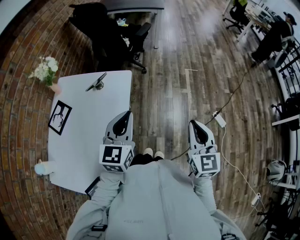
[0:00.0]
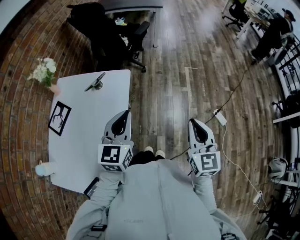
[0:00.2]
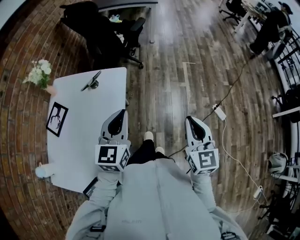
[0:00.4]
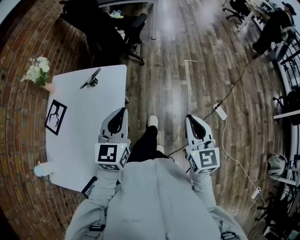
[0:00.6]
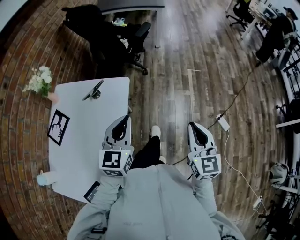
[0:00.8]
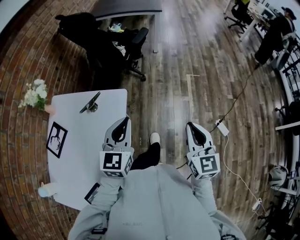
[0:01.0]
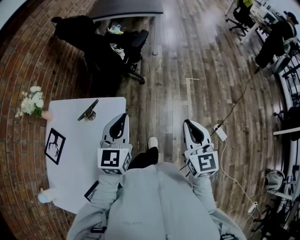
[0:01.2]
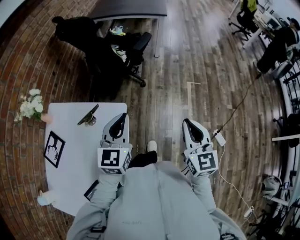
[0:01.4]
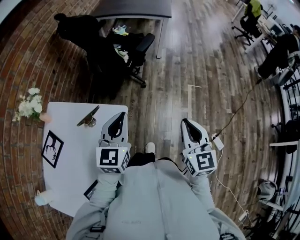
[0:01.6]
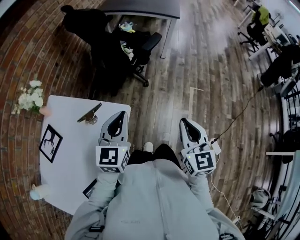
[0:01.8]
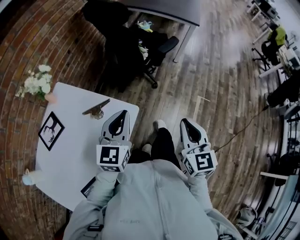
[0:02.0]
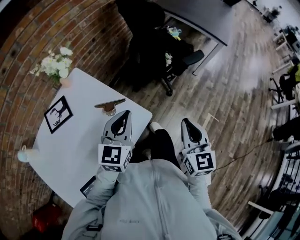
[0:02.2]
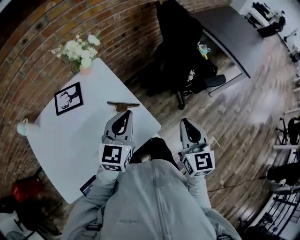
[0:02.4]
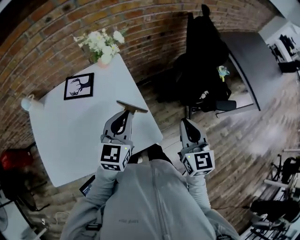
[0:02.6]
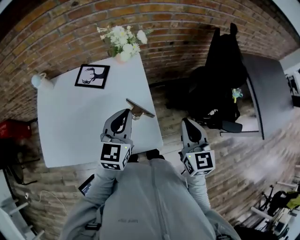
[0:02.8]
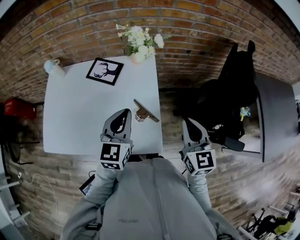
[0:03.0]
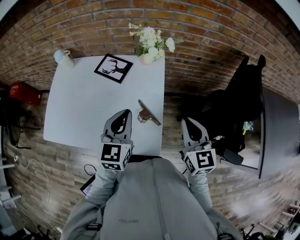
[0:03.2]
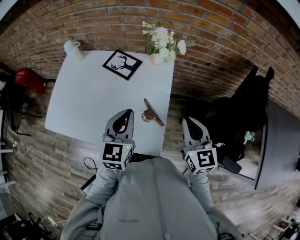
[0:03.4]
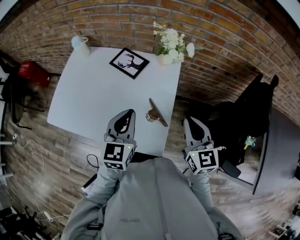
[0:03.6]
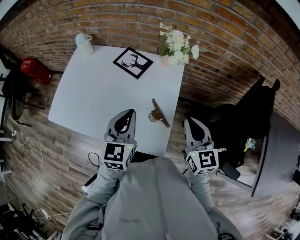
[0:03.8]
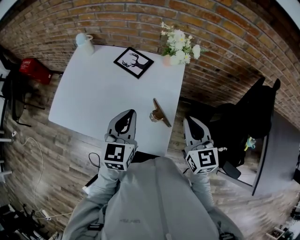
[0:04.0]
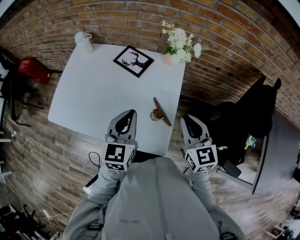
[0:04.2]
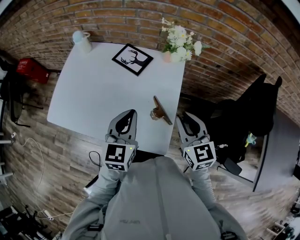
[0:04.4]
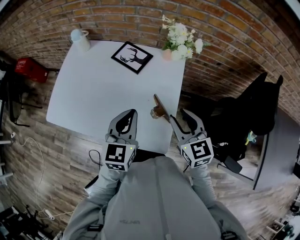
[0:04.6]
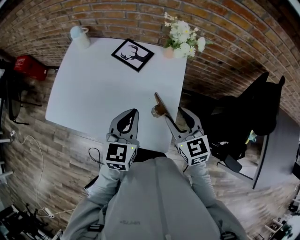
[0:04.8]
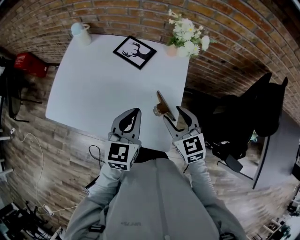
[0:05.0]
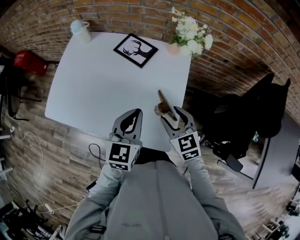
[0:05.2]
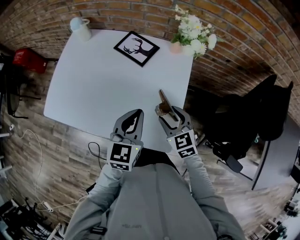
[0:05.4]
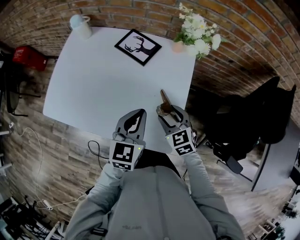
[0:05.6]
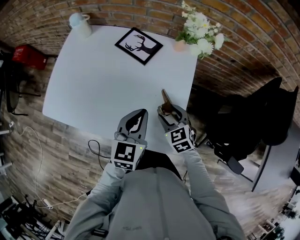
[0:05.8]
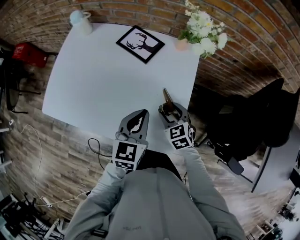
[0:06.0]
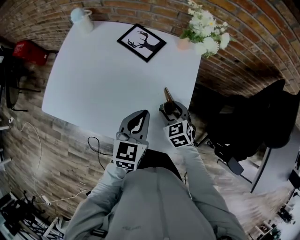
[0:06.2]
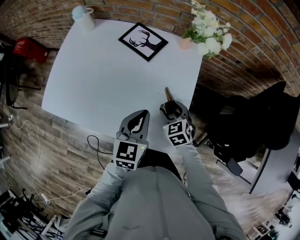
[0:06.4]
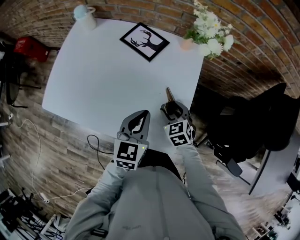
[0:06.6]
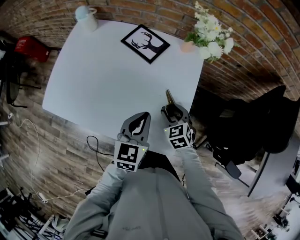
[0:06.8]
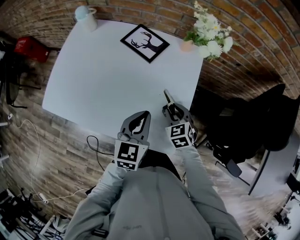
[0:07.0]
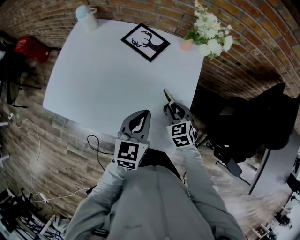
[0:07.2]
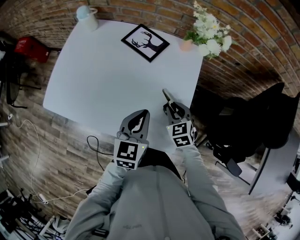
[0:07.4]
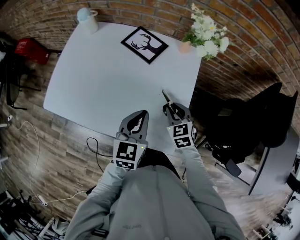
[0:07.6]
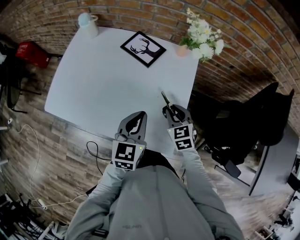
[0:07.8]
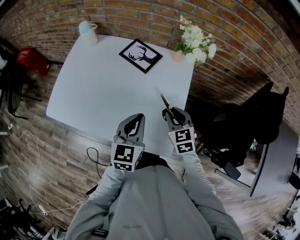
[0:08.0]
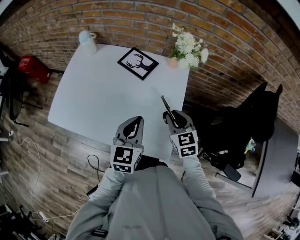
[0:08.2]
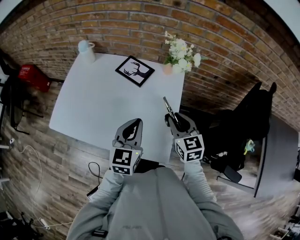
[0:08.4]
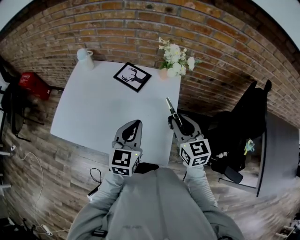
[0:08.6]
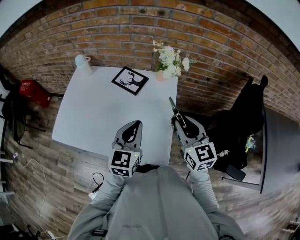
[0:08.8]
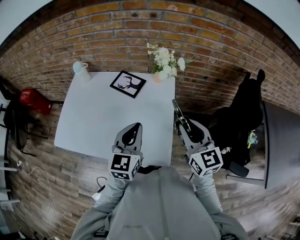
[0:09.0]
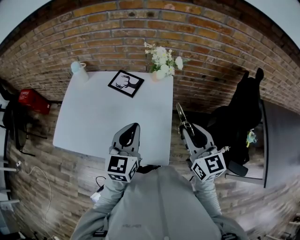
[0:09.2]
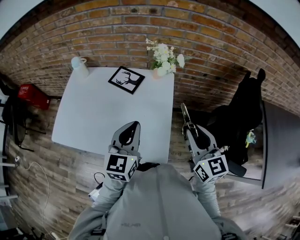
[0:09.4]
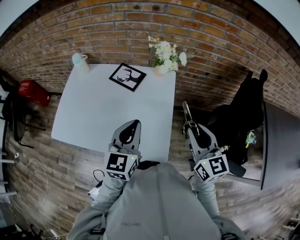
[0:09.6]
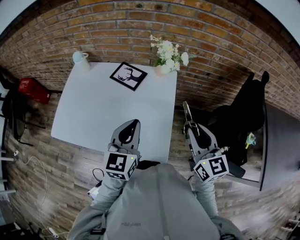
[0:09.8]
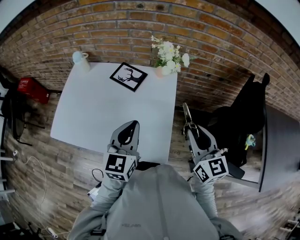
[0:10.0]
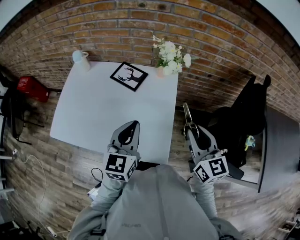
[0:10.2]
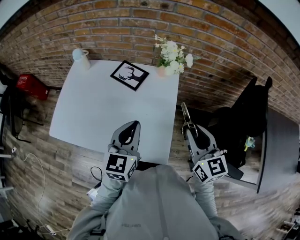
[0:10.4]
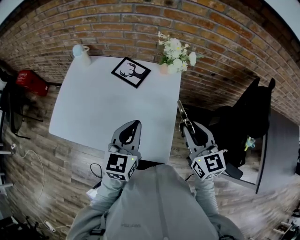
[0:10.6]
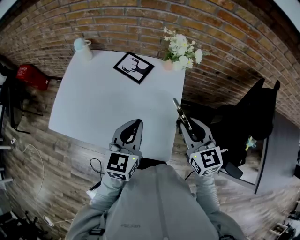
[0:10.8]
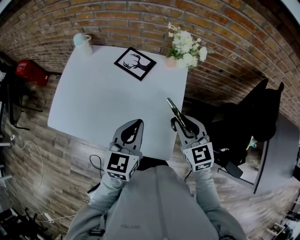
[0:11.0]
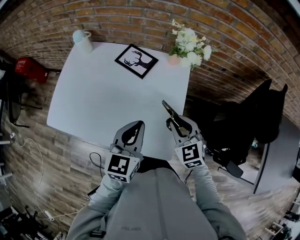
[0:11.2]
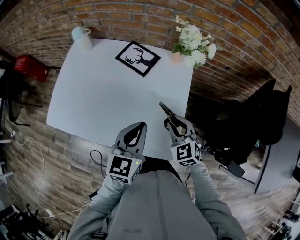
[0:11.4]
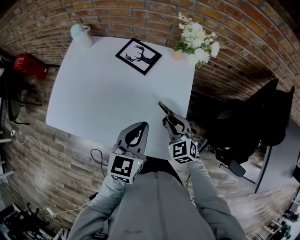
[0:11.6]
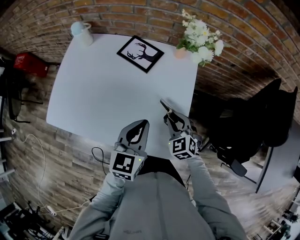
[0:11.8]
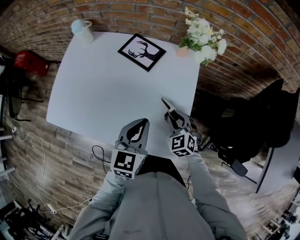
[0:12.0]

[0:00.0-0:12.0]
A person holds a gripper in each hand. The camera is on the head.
0:00.0 to 0:01.6: Both grippers move forward, approximately 25 cm.
0:01.6 to 0:03.0: The left gripper moves about 25 cm, and changes its angle by approximately 80 degrees. The right gripper changes place by approximately 40 cm, and turns by roughly 80 degrees.
0:03.0 to 0:04.4: The left gripper heads to the left, covering approximately 5 cm; the right gripper heads to the left and forward, covering roughly 10 cm, and turns by some 20 degrees.
0:04.4 to 0:06.0: The right gripper moves downward, roughly 20 cm, turns by about 30 degrees, and opens; the left gripper is displaced downward by approximately 10 cm.
0:06.0 to 0:07.6: The right gripper closes its fingers.
0:07.6 to 0:09.0: The right gripper heads upward, covering roughly 25 cm, and tips its fingers upward by roughly 30 degrees. Meanwhile the left gripper heads upward, covering approximately 10 cm.
0:09.0 to 0:10.4: There are only small adjustments of the grippers.
0:10.4 to 0:12.0: The left gripper goes roughly 10 cm downward. Meanwhile the right gripper travels downward and to the left by approximately 25 cm, and changes its angle by about 40 degrees.

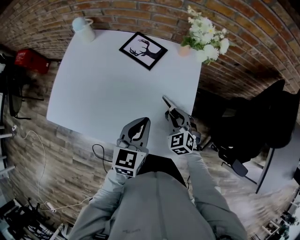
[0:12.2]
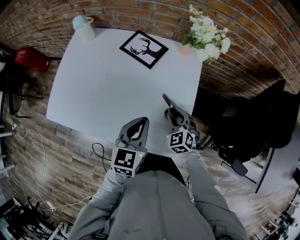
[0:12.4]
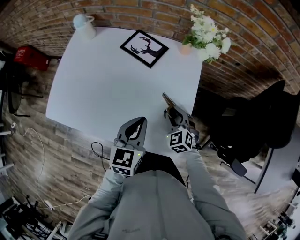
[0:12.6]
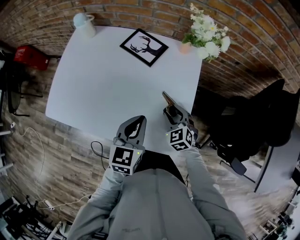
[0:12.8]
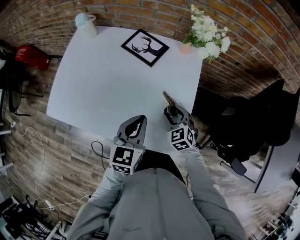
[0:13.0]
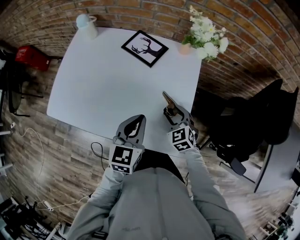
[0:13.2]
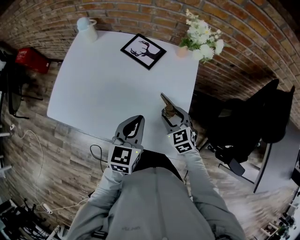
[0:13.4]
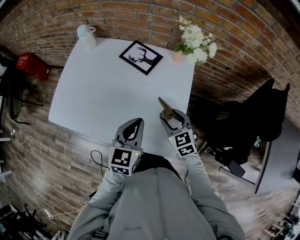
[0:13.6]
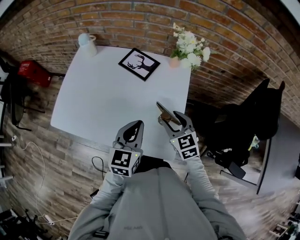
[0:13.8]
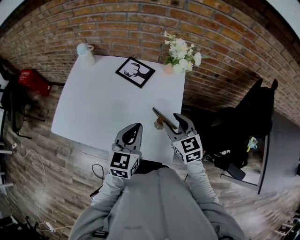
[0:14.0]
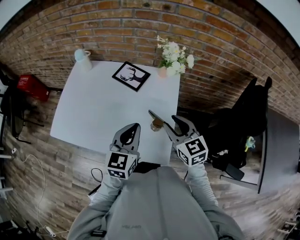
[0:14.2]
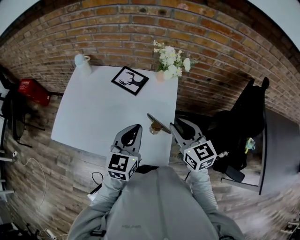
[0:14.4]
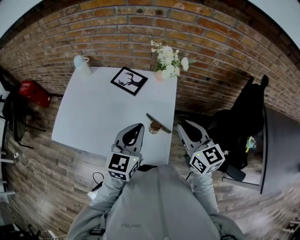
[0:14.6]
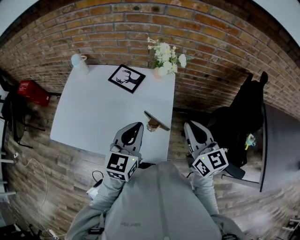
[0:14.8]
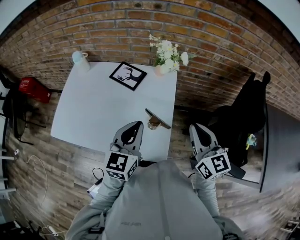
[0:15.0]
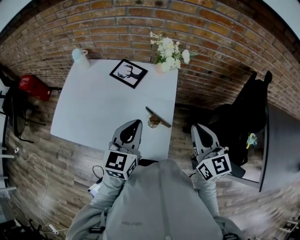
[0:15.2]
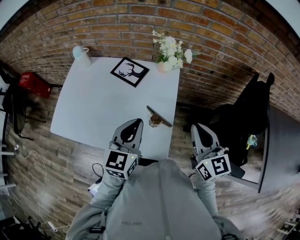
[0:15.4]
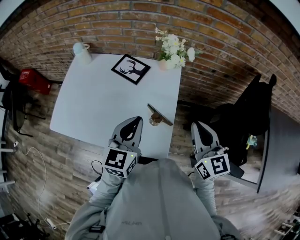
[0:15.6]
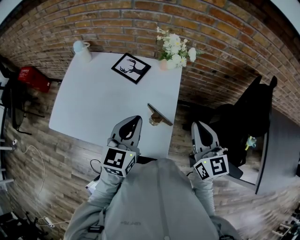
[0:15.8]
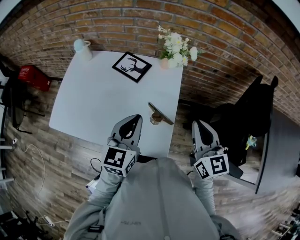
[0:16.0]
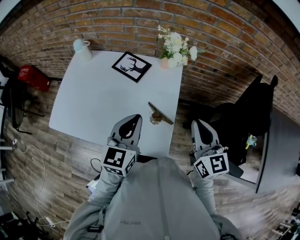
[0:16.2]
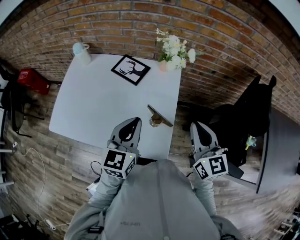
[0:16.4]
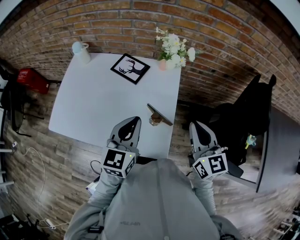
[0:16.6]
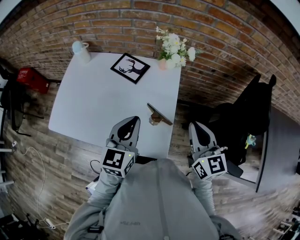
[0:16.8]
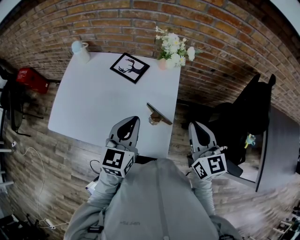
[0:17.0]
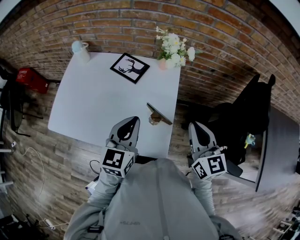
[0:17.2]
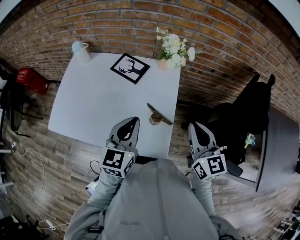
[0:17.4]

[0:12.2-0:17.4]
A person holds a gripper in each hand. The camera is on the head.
0:12.2 to 0:14.0: The left gripper heads upward, covering roughly 5 cm; the right gripper goes approximately 15 cm upward, turns by some 30 degrees, and opens its fingers.
0:14.0 to 0:15.6: The right gripper shifts approximately 15 cm upward and to the right, changes its angle by approximately 20 degrees, and closes its fingers. Meanwhile the left gripper shifts by about 5 cm.
0:15.6 to 0:17.4: The grippers make only small movements.

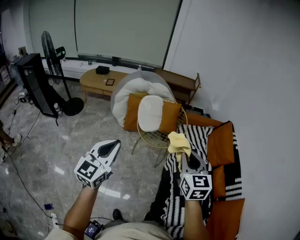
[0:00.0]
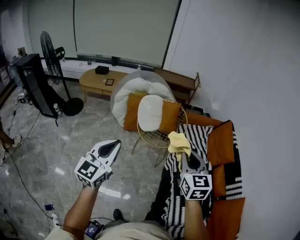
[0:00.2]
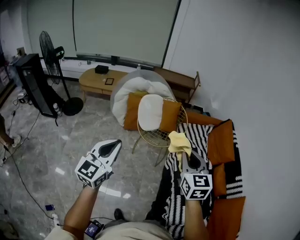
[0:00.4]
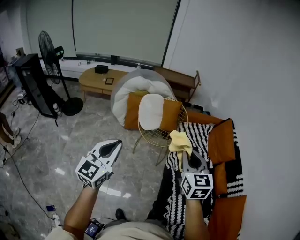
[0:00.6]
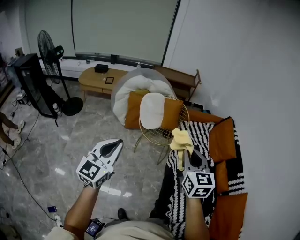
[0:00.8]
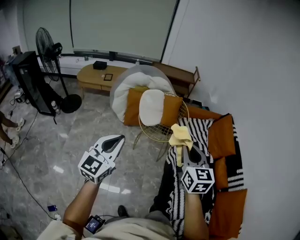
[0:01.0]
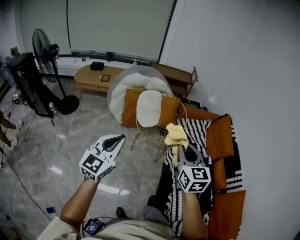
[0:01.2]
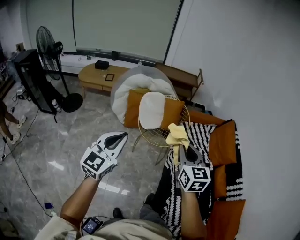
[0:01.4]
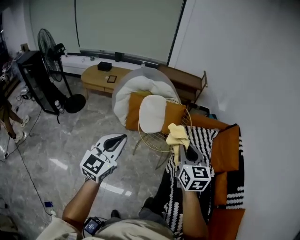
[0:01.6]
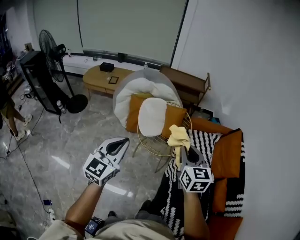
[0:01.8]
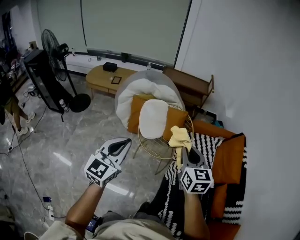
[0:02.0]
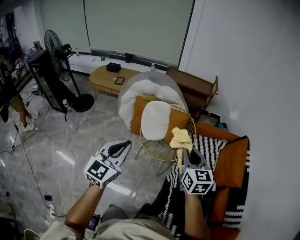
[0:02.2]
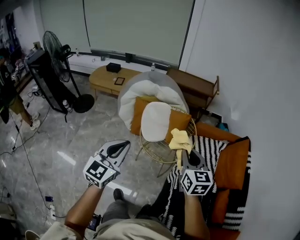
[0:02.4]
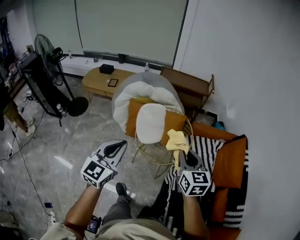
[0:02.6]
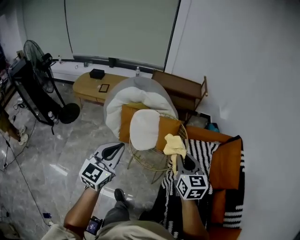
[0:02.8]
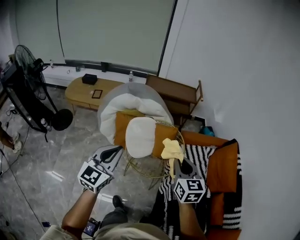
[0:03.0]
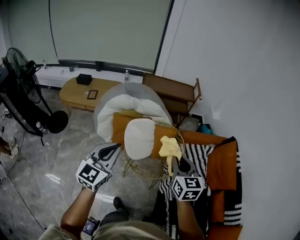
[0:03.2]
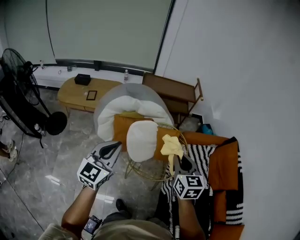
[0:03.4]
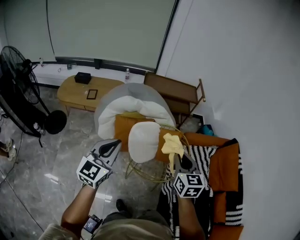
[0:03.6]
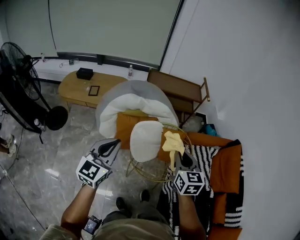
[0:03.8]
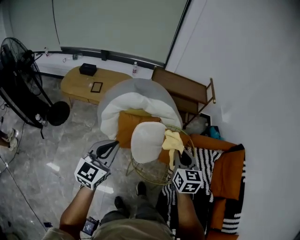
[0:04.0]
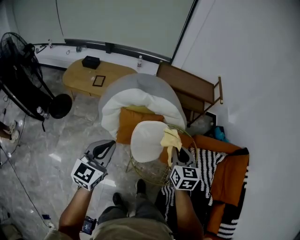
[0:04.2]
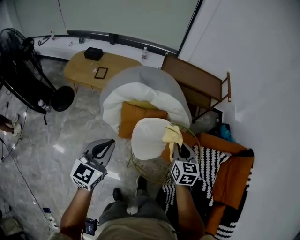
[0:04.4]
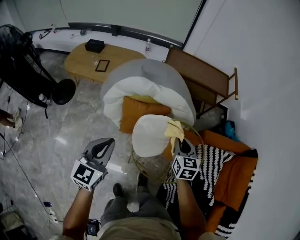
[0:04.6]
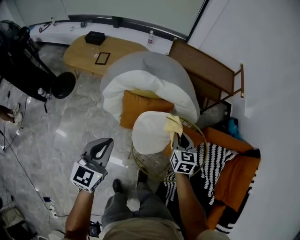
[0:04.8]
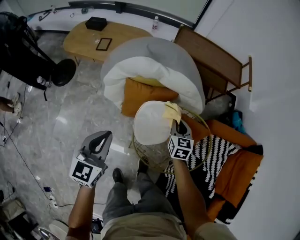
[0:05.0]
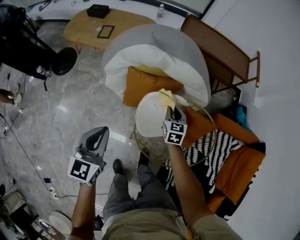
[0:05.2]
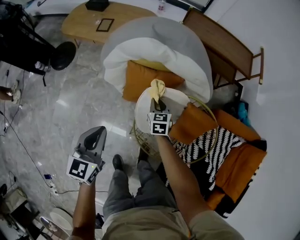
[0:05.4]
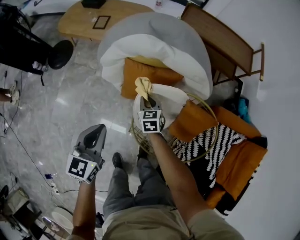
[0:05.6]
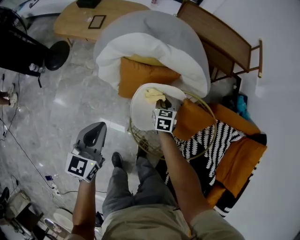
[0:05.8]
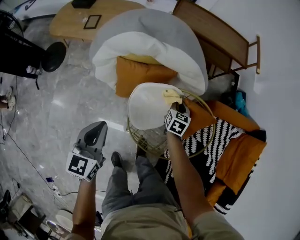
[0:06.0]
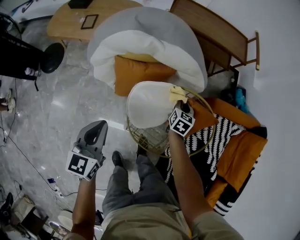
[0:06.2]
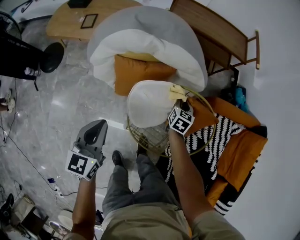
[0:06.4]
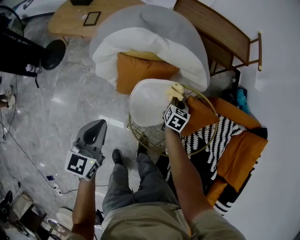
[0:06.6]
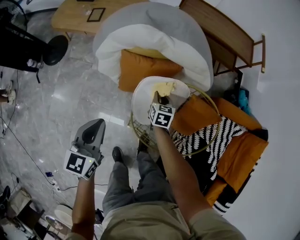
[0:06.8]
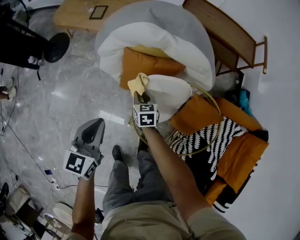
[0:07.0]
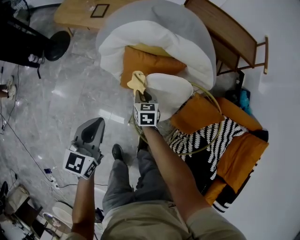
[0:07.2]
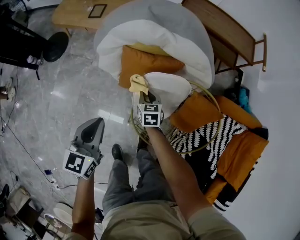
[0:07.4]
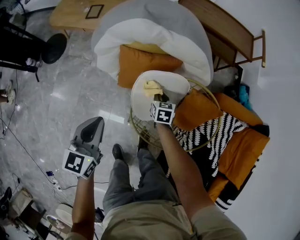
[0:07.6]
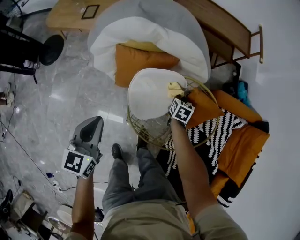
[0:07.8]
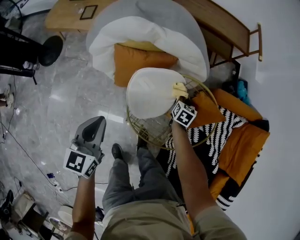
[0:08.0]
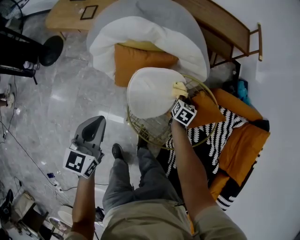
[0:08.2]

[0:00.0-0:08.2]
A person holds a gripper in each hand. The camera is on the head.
0:00.0 to 0:01.6: Both grippers move forward, some 15 cm.
0:01.6 to 0:03.2: The two grippers go about 30 cm forward.
0:03.2 to 0:05.0: The right gripper goes about 50 cm forward and downward. Meanwhile the left gripper moves downward, forward and to the left, approximately 30 cm, and swivels some 30 degrees.
0:05.0 to 0:06.6: The left gripper heads downward, covering about 5 cm; the right gripper moves left and right over roughly 25 cm, changing direction 2 times, and swivels some 20 degrees.
0:06.6 to 0:08.2: The right gripper travels to the left and back again, roughly 20 cm each way.
